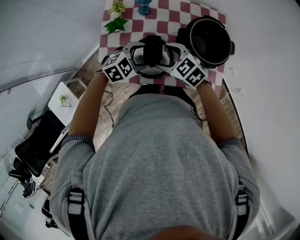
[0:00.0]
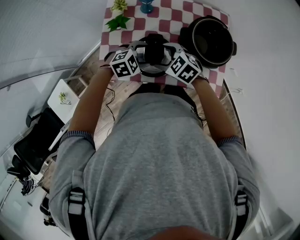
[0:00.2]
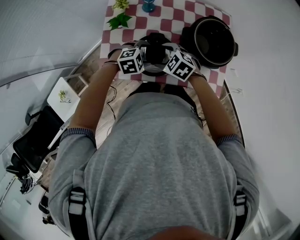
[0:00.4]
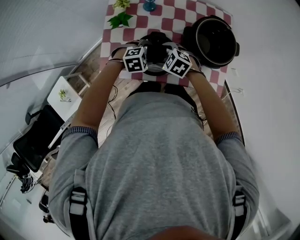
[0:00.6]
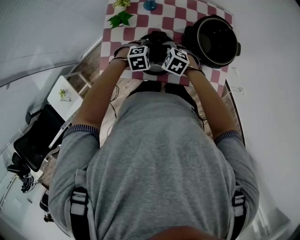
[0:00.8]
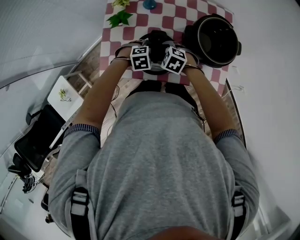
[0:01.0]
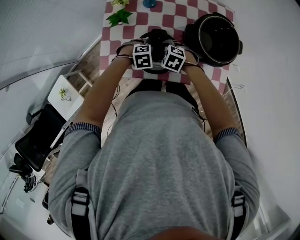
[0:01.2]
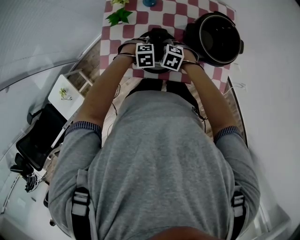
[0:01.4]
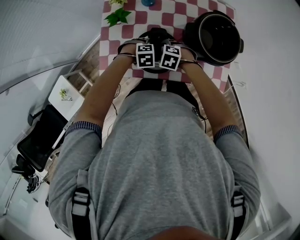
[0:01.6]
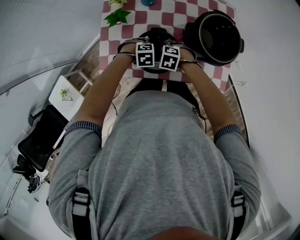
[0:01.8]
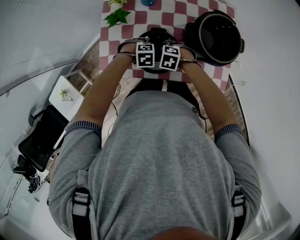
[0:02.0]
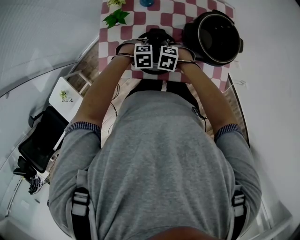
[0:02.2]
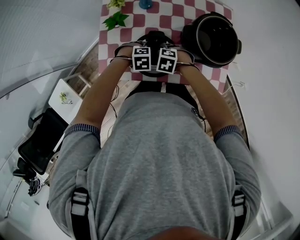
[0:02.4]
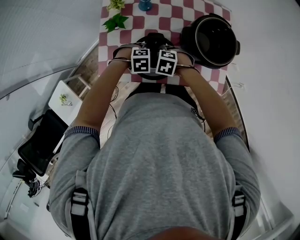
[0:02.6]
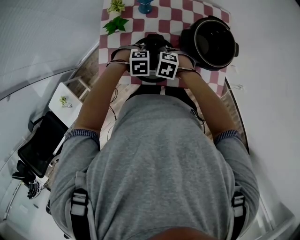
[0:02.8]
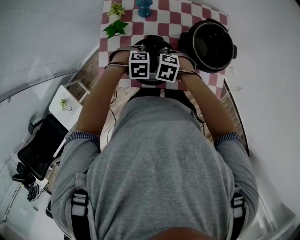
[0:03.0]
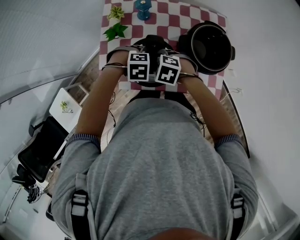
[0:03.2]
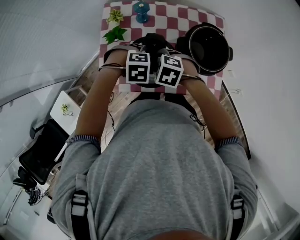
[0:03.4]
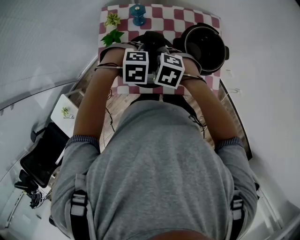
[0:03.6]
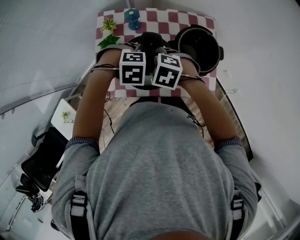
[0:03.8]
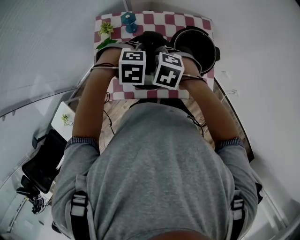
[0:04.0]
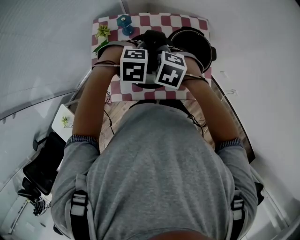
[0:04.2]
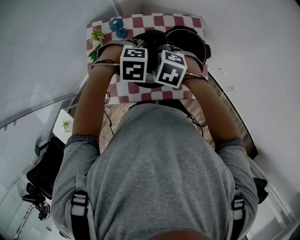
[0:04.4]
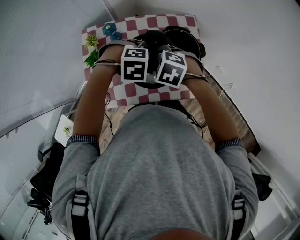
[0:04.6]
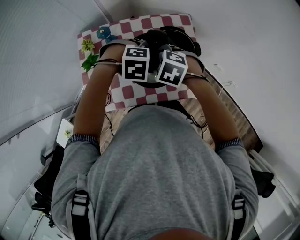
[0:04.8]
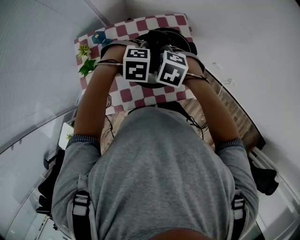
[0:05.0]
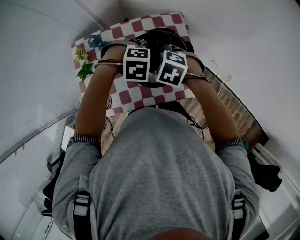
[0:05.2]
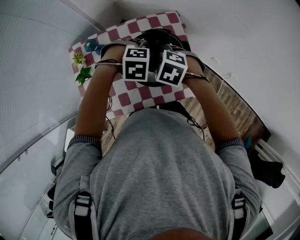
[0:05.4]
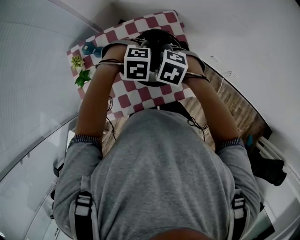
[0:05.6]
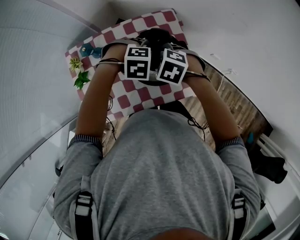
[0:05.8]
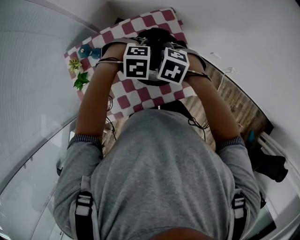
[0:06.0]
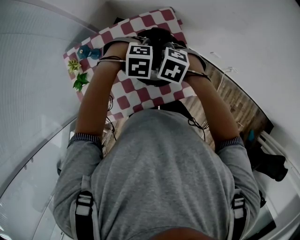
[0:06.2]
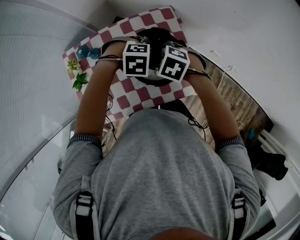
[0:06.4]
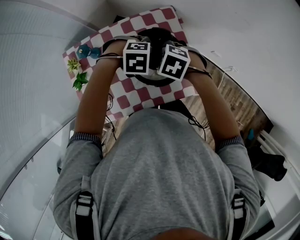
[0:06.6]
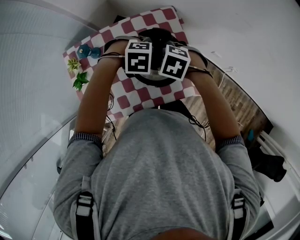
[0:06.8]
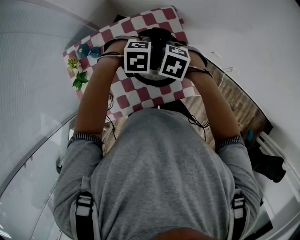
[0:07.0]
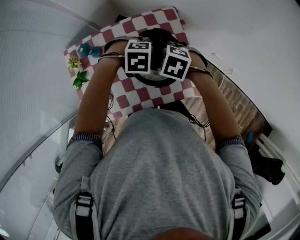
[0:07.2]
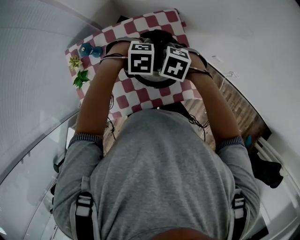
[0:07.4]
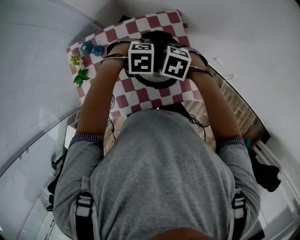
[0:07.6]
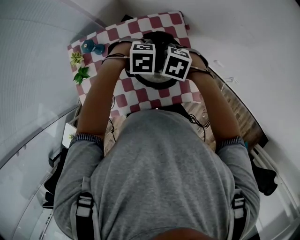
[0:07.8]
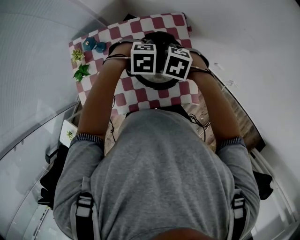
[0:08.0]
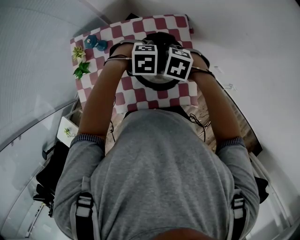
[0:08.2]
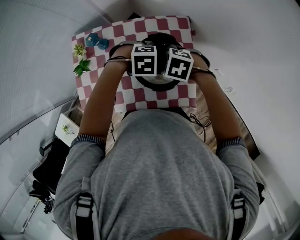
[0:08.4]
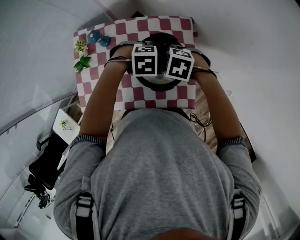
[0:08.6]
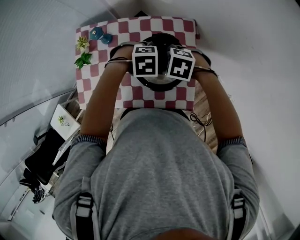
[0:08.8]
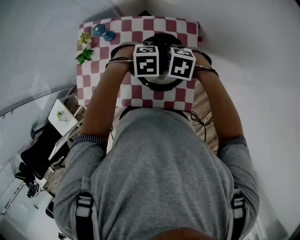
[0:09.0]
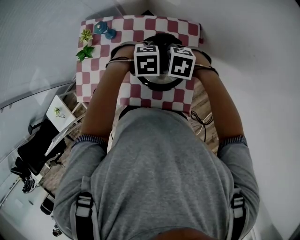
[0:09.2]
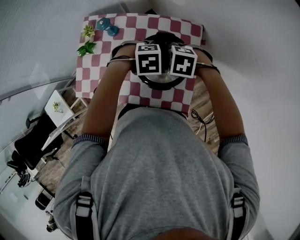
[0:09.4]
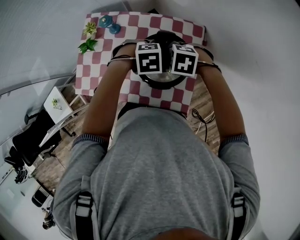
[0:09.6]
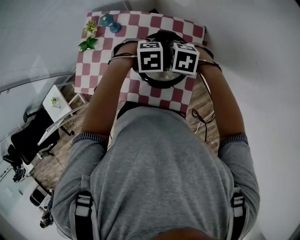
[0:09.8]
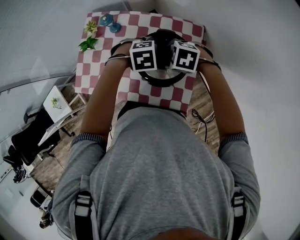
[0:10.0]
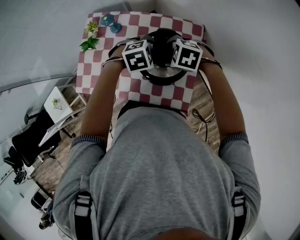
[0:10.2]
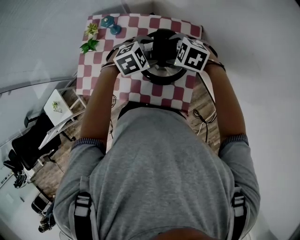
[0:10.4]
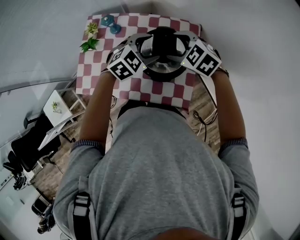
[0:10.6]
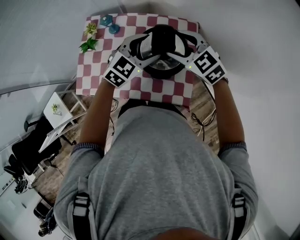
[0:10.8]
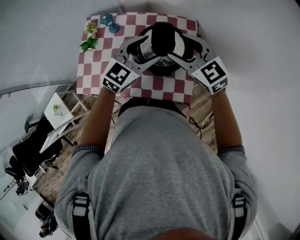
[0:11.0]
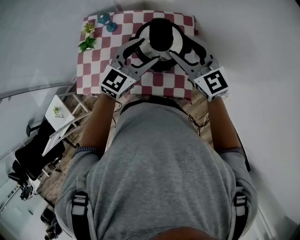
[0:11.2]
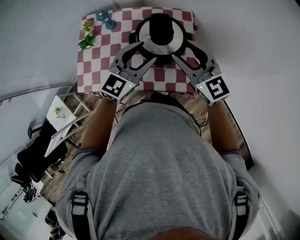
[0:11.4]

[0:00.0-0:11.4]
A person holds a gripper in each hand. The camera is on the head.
0:00.0 to 0:01.4: The two grippers go roughly 15 cm downward. The right gripper swivels approximately 30 degrees; the left gripper turns by about 30 degrees.
0:01.4 to 0:02.8: The grippers stay close to where they were, moving slightly.
0:02.8 to 0:04.2: The grippers both shift upward by some 20 cm.
0:04.2 to 0:05.6: The left gripper shifts by approximately 15 cm. The right gripper moves about 15 cm.
0:05.6 to 0:07.2: The grippers move only a little.
0:07.2 to 0:08.6: There are only small adjustments of the grippers.
0:08.6 to 0:10.0: The grippers stay close to where they were, moving slightly.
0:10.0 to 0:11.4: The grippers both shift upward by about 15 cm. The right gripper tilts its fingers some 60 degrees upward. Meanwhile the left gripper tips its fingers upward by some 60 degrees.

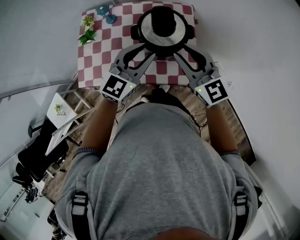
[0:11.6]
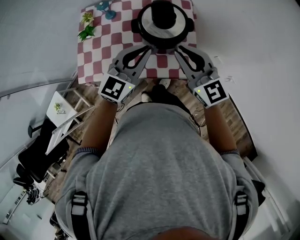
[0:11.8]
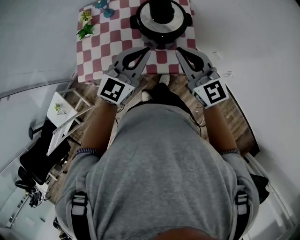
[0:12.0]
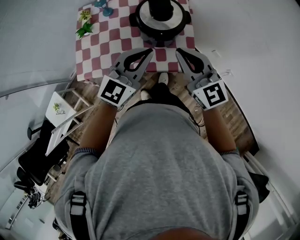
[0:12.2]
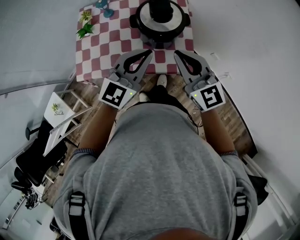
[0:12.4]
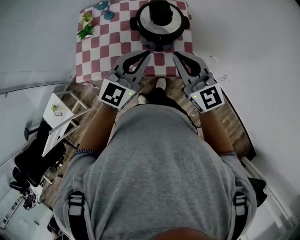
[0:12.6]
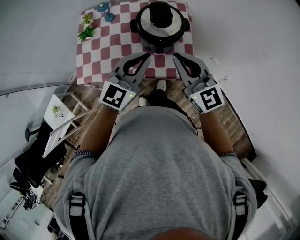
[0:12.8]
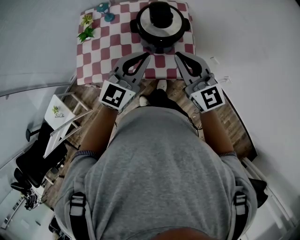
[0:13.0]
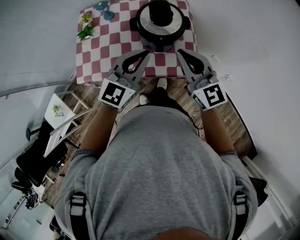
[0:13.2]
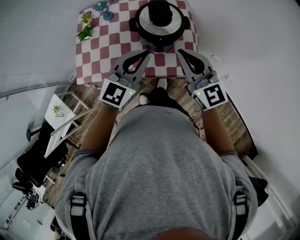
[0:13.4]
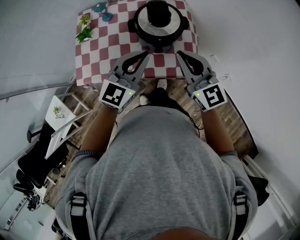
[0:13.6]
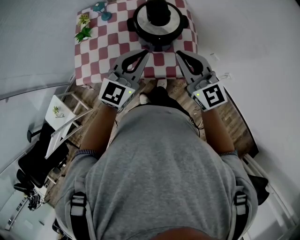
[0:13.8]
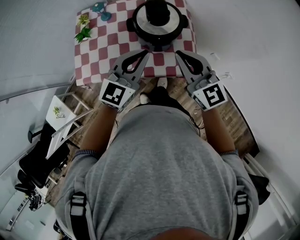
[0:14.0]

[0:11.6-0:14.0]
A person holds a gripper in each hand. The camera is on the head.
0:11.6 to 0:12.8: The two grippers go approximately 10 cm backward. The left gripper closes up.
0:12.8 to 0:14.0: There are only small adjustments of the grippers.

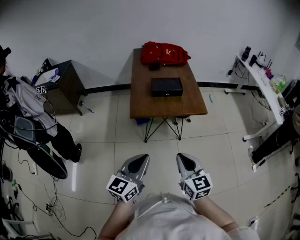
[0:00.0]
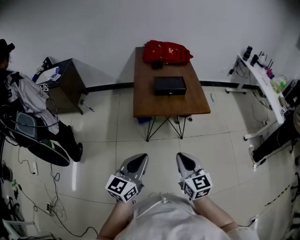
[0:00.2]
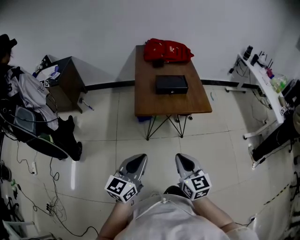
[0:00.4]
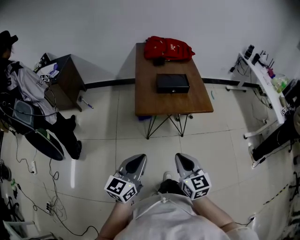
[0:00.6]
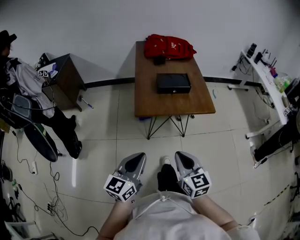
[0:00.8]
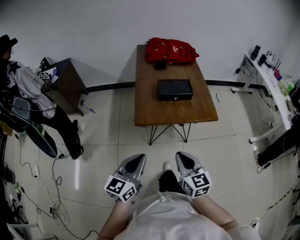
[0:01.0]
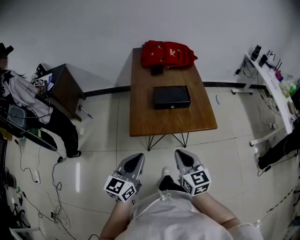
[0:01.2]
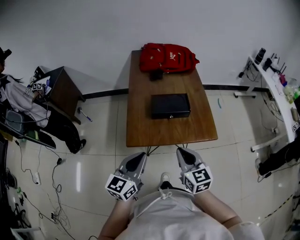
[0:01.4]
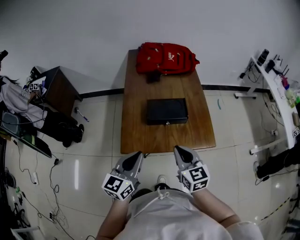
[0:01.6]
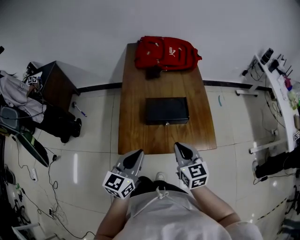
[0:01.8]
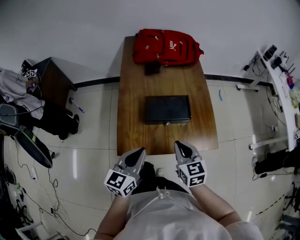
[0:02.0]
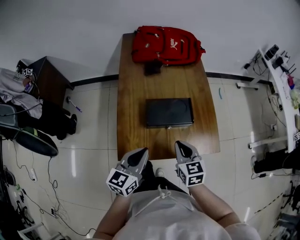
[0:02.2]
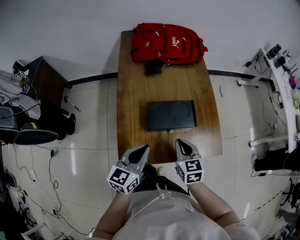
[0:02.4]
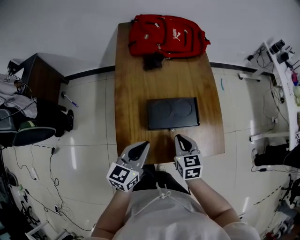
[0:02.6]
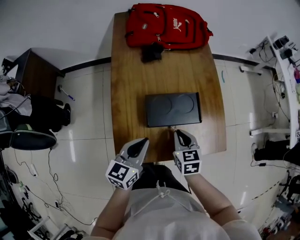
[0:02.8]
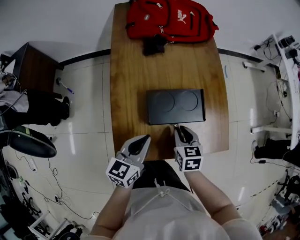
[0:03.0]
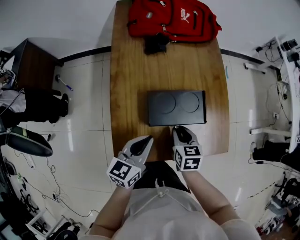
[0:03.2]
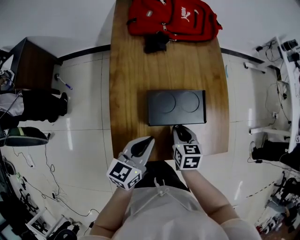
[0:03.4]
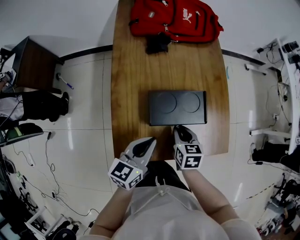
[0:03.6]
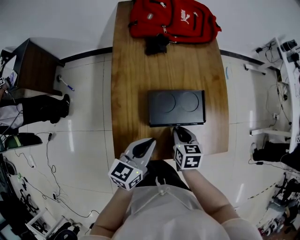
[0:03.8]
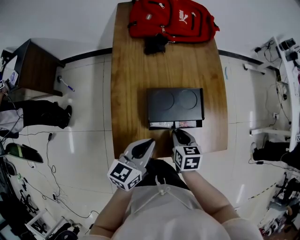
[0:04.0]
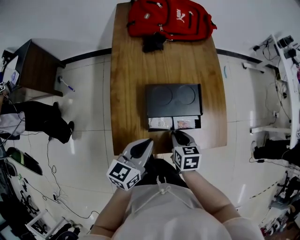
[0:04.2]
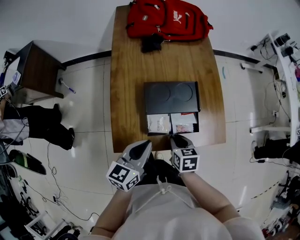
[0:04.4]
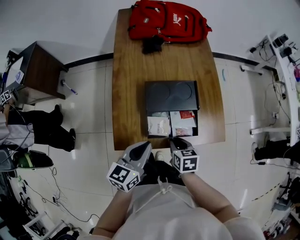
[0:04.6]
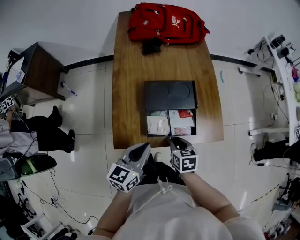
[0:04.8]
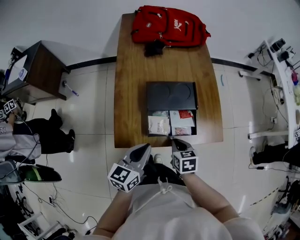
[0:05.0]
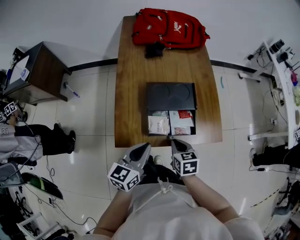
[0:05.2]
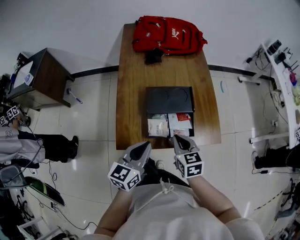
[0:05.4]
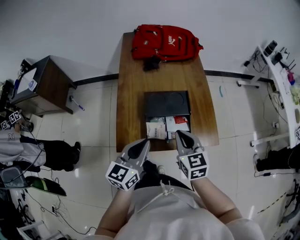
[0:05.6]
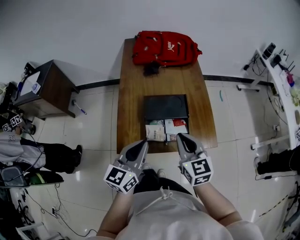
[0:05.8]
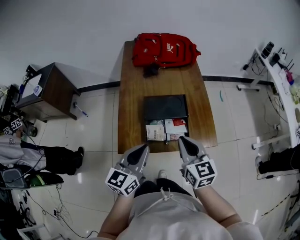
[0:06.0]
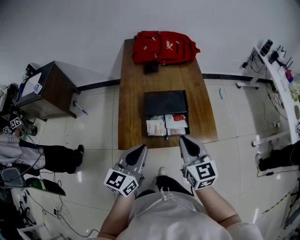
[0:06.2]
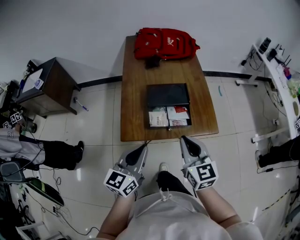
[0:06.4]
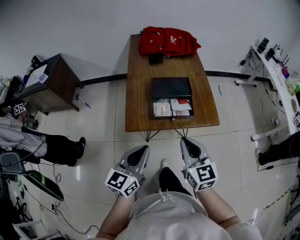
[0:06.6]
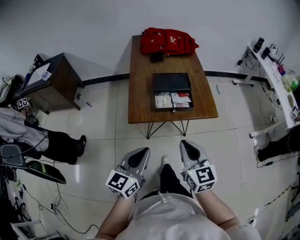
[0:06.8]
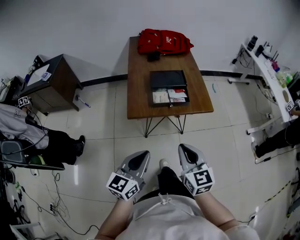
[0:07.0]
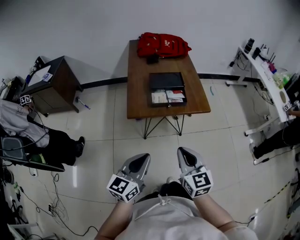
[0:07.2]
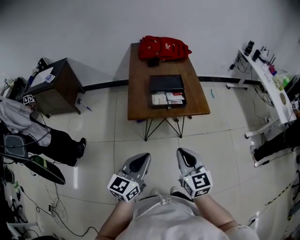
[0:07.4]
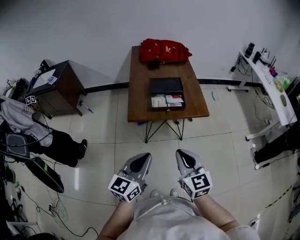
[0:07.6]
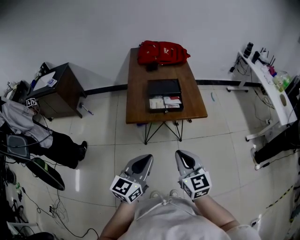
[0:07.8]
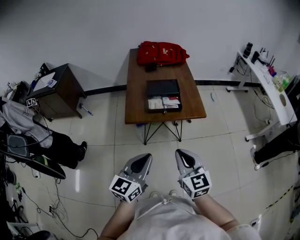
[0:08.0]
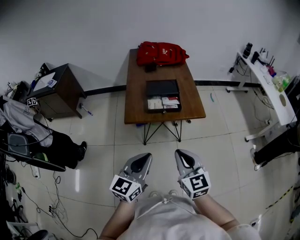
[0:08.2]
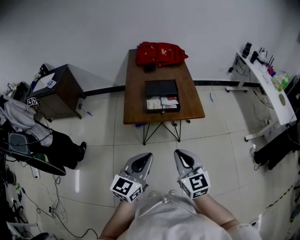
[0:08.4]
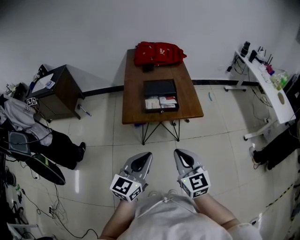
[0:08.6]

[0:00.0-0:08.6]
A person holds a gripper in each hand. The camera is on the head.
0:00.0 to 0:01.4: Both grippers move forward, approximately 25 cm.
0:01.4 to 0:02.8: Both grippers travel together forward and downward, some 25 cm. The right gripper turns by approximately 30 degrees.
0:02.8 to 0:04.4: The left gripper shifts approximately 5 cm backward; the right gripper travels backward and downward by approximately 10 cm.
0:04.4 to 0:05.8: The left gripper shifts approximately 10 cm upward. Meanwhile the right gripper shifts approximately 20 cm upward, and points its fingers approximately 30 degrees further upward.
0:05.8 to 0:07.2: Both grippers move backward, about 35 cm.
0:07.2 to 0:08.6: The left gripper is displaced to the right by some 5 cm; the right gripper changes place by about 5 cm.

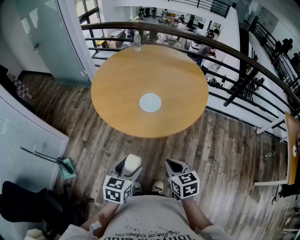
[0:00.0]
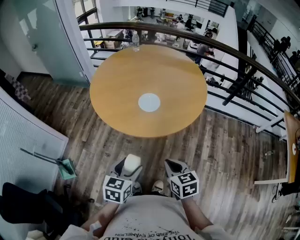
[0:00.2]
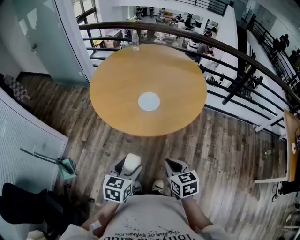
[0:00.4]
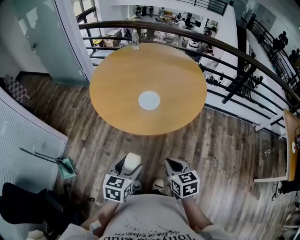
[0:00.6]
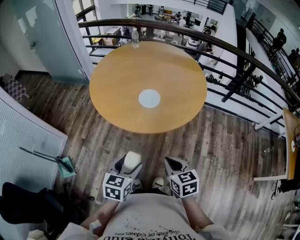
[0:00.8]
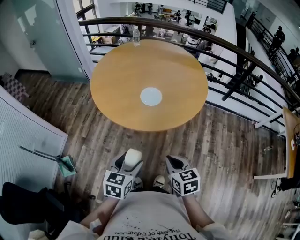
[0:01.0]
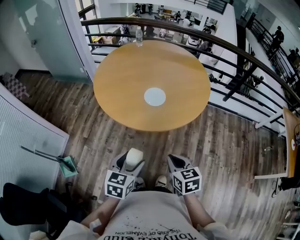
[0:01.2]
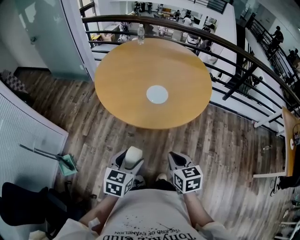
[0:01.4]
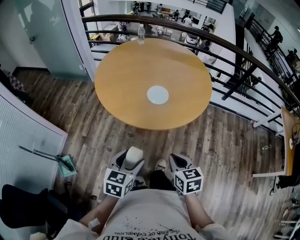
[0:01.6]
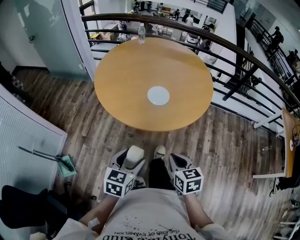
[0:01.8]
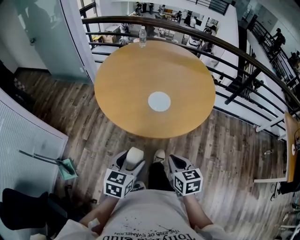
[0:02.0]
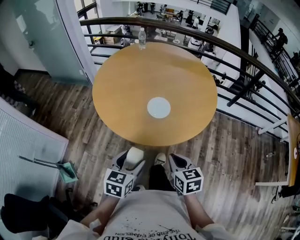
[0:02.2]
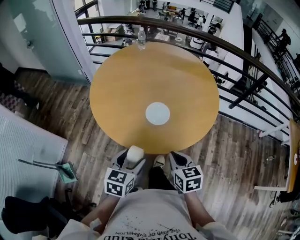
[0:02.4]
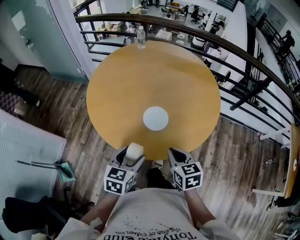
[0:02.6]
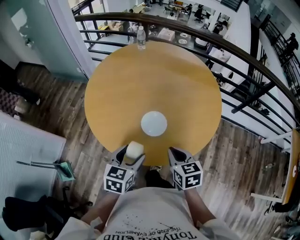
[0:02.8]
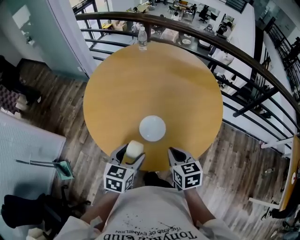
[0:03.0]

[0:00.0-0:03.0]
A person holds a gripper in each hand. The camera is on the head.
0:00.0 to 0:01.6: Both grippers travel together to the left, roughly 5 cm.
0:01.6 to 0:03.0: The grippers both shift forward by about 30 cm.
